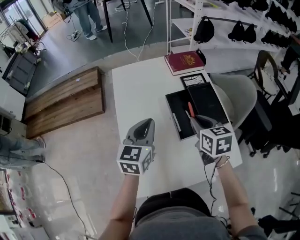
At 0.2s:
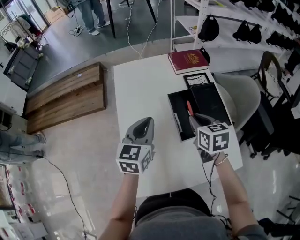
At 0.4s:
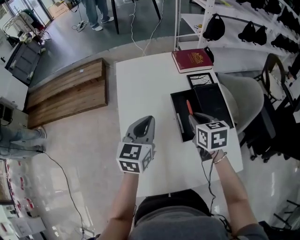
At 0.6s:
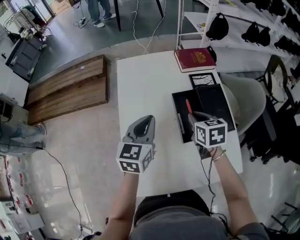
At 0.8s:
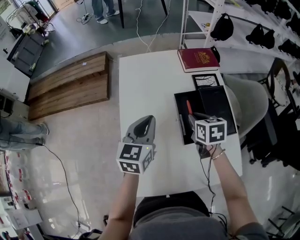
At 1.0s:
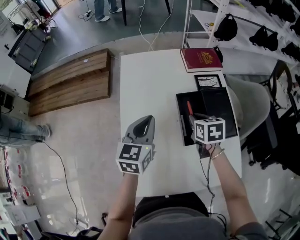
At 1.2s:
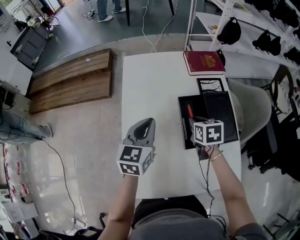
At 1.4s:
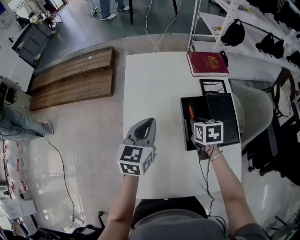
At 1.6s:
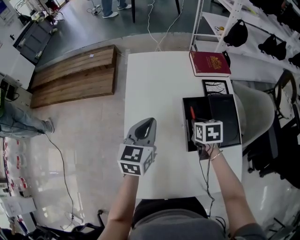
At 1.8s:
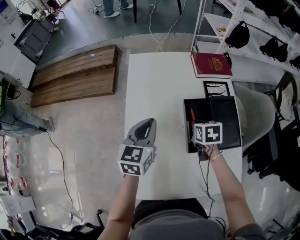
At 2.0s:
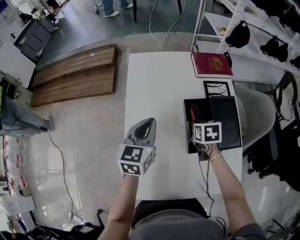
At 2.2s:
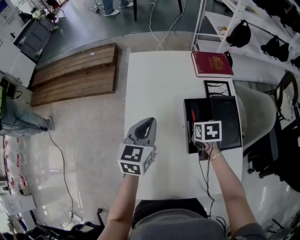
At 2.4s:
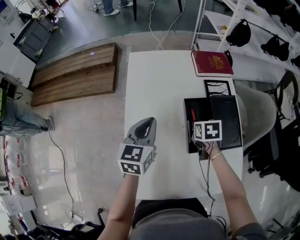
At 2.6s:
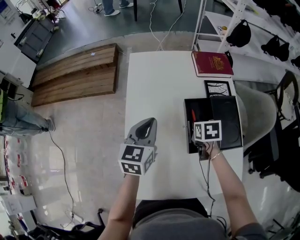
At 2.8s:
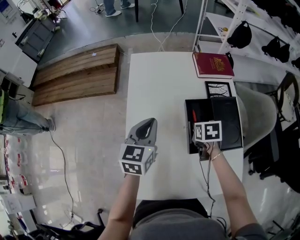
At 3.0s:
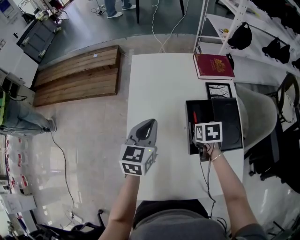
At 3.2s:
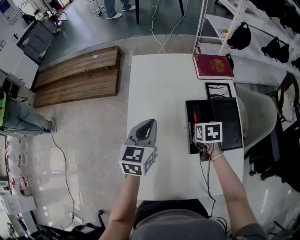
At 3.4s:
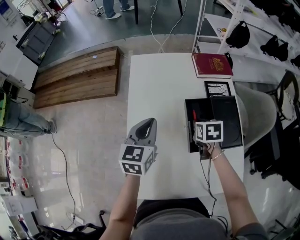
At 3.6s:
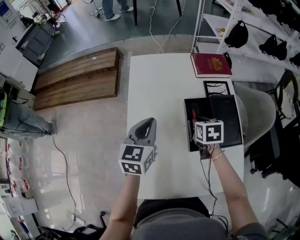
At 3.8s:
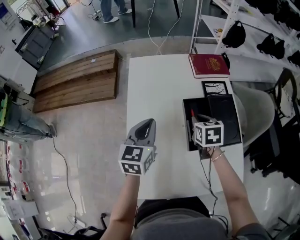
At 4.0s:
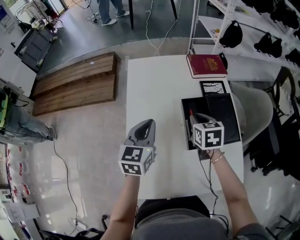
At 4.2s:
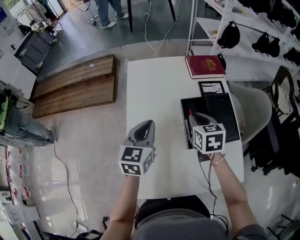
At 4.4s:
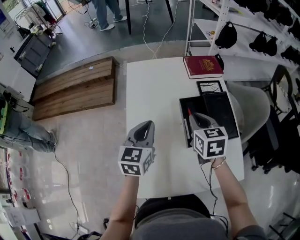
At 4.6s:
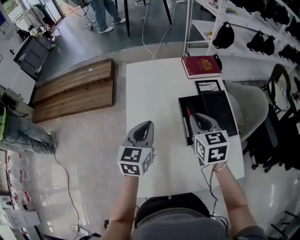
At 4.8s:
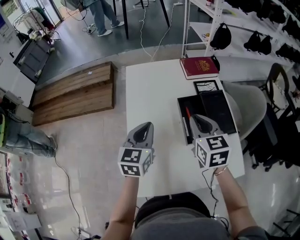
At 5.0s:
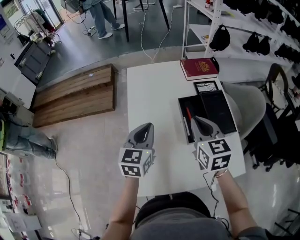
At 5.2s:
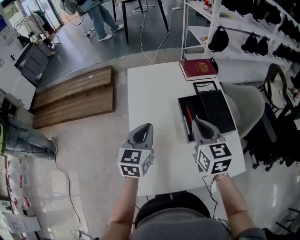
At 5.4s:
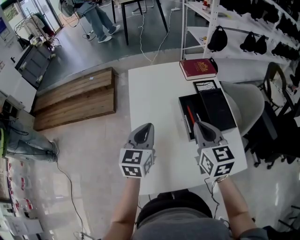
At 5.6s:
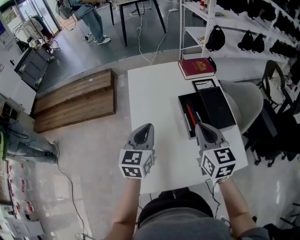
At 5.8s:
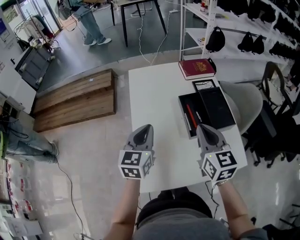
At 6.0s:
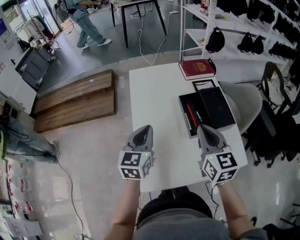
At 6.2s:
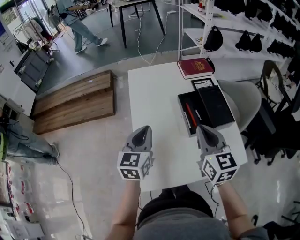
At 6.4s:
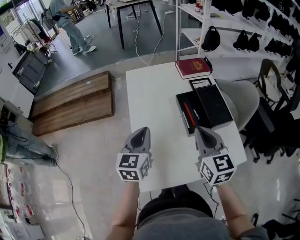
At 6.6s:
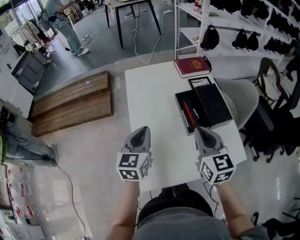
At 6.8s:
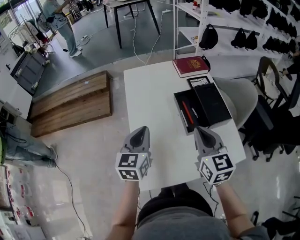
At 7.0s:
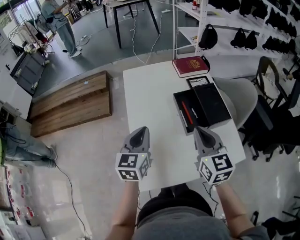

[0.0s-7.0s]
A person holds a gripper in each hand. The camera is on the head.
0.0s to 1.4s: The right gripper heads downward and forward, covering about 15 cm, while the left gripper ends up approximately 5 cm from where it was.
1.4s to 2.8s: The grippers make only small movements.
2.8s to 4.2s: The right gripper moves upward, about 10 cm, and swivels approximately 20 degrees.
4.2s to 5.6s: The right gripper shifts roughly 15 cm backward and upward, and rotates approximately 20 degrees. Meanwhile the left gripper moves backward, some 5 cm.
5.6s to 7.0s: The grippers move only a little.

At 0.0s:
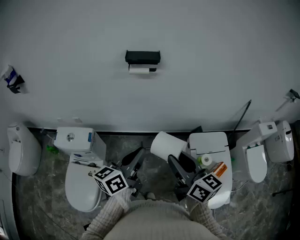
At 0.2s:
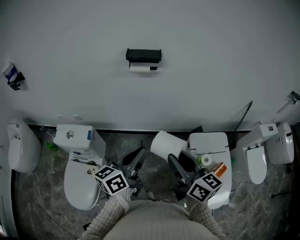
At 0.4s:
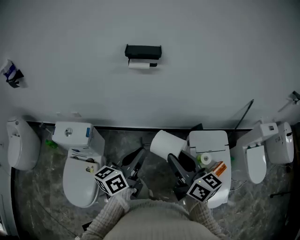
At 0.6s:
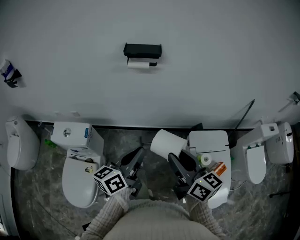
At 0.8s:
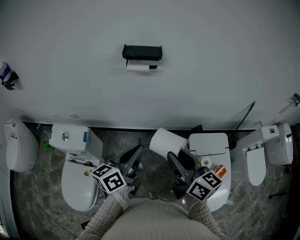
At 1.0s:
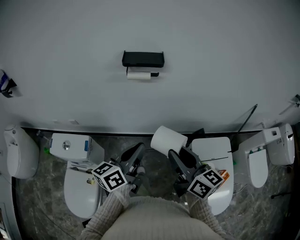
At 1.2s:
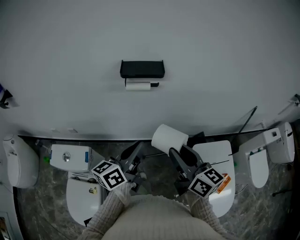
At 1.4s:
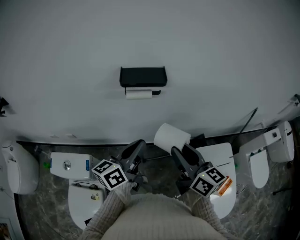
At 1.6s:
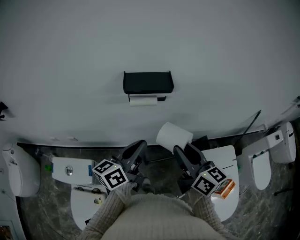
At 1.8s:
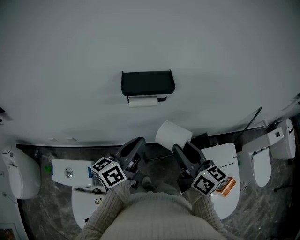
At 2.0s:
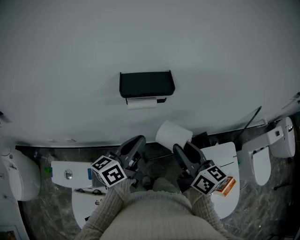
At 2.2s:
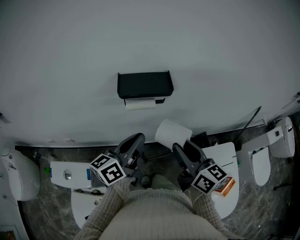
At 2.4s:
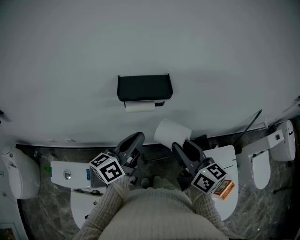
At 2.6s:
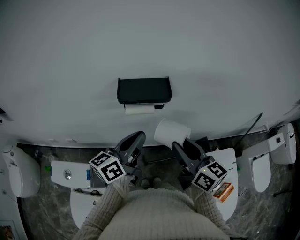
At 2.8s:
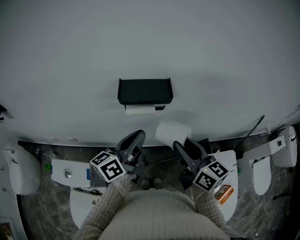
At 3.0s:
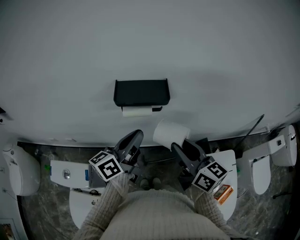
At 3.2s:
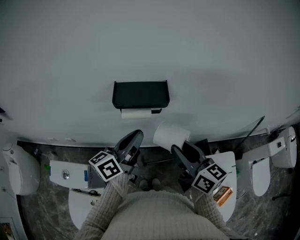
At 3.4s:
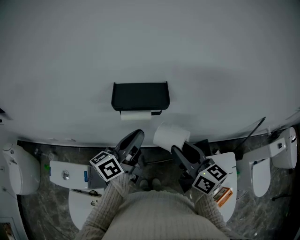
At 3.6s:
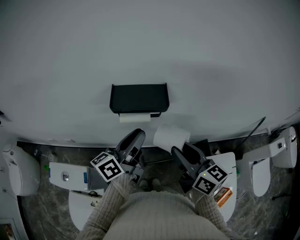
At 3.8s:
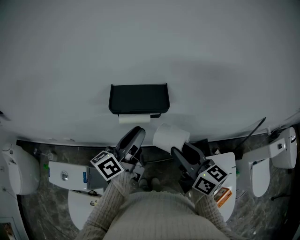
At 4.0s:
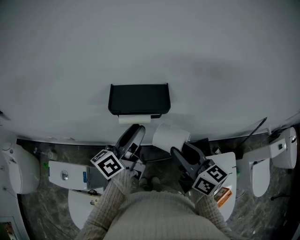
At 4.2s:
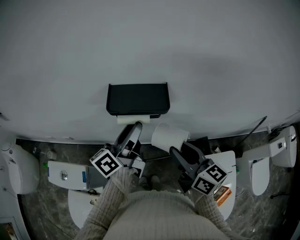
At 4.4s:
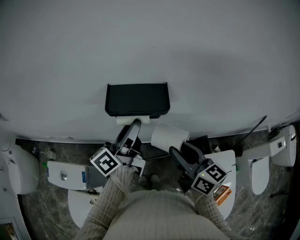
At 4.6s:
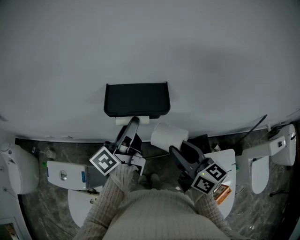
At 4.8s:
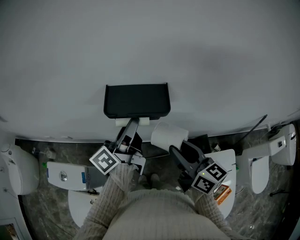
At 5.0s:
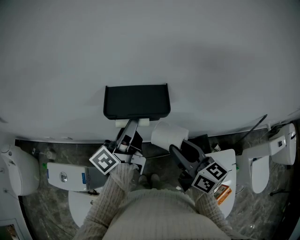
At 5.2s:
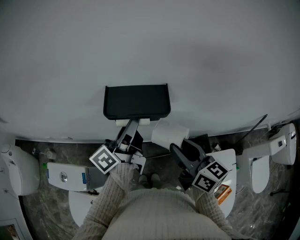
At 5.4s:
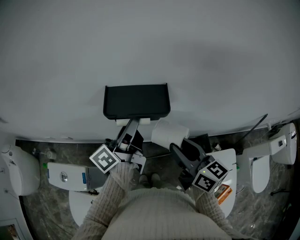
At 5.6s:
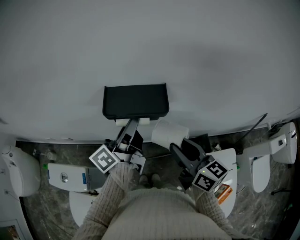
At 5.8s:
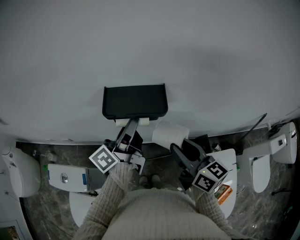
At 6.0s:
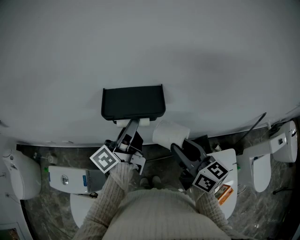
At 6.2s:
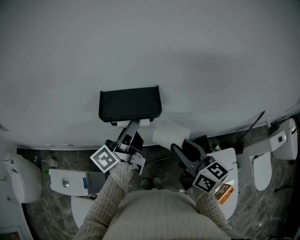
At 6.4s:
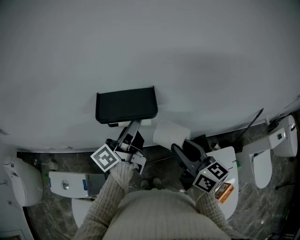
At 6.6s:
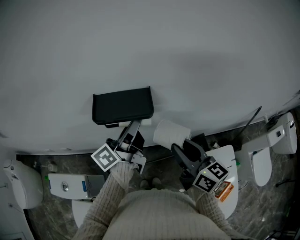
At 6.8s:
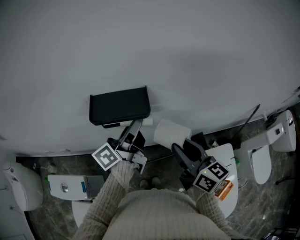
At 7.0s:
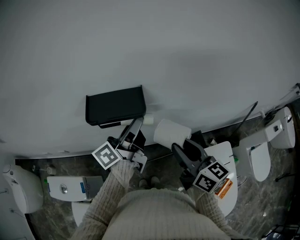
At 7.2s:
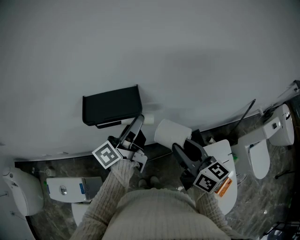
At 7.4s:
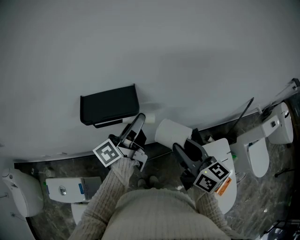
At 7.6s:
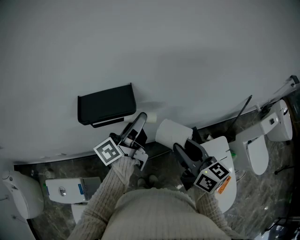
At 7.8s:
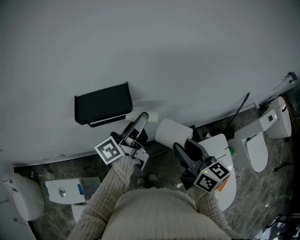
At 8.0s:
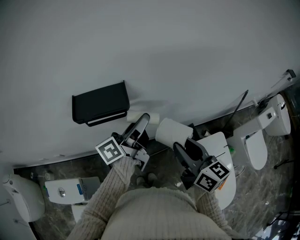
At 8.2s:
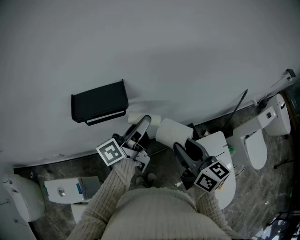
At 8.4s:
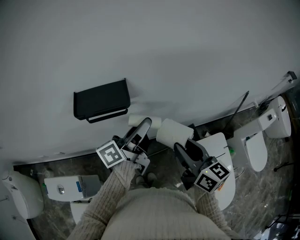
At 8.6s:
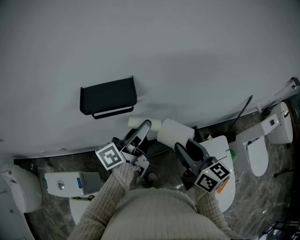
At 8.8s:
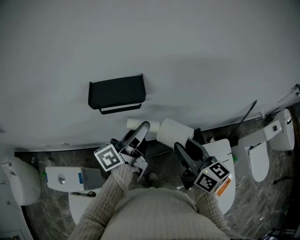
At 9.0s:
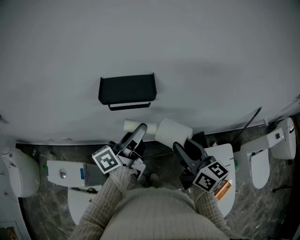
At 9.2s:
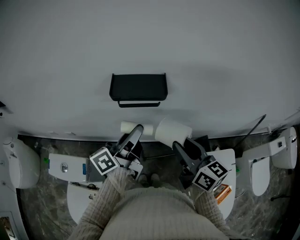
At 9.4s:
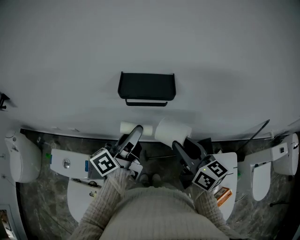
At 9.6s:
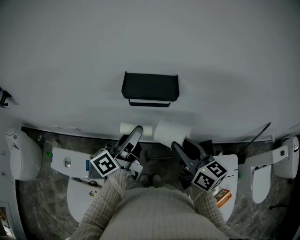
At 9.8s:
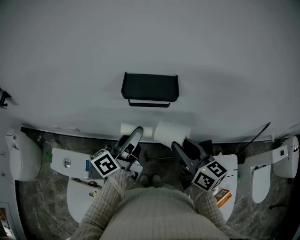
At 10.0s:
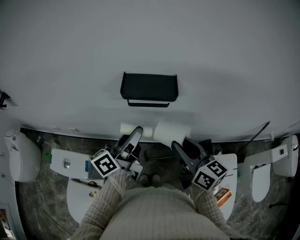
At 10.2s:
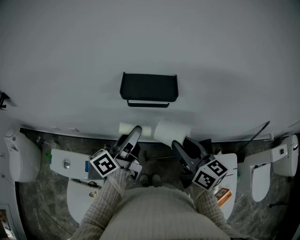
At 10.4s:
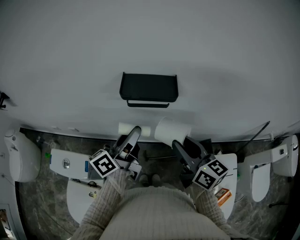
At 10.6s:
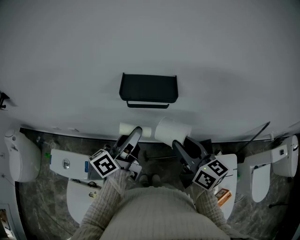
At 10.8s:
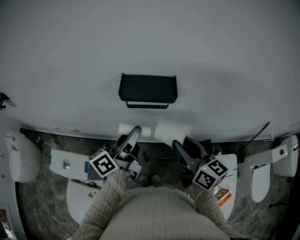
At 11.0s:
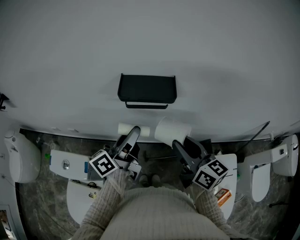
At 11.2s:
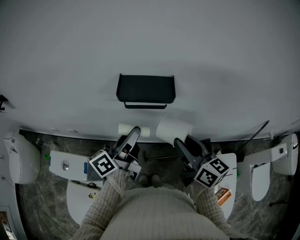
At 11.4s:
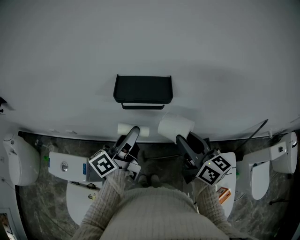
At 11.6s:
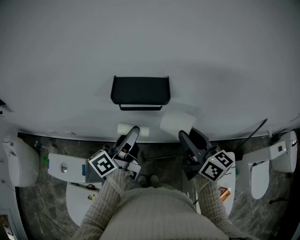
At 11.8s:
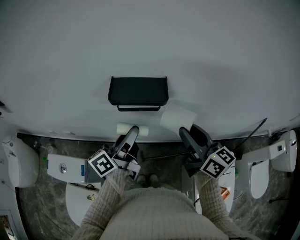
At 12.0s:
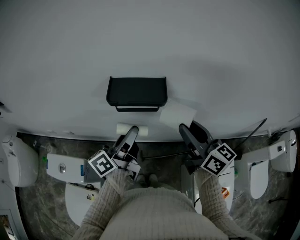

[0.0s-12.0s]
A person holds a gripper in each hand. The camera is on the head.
0.0s to 1.6s: The grippers both shift forward by roughly 25 cm.
1.6s to 3.0s: The two grippers go about 5 cm forward.
3.0s to 4.4s: The left gripper shifts some 5 cm forward, and opens.
4.4s to 6.0s: The grippers stay close to where they were, moving slightly.
6.0s to 7.6s: The grippers both shift to the right by roughly 10 cm.
7.6s to 9.0s: The left gripper goes some 10 cm backward.
9.0s to 10.4s: The left gripper goes approximately 10 cm to the left. The right gripper changes place by some 5 cm.
10.4s to 12.0s: The right gripper goes approximately 10 cm forward and to the right.

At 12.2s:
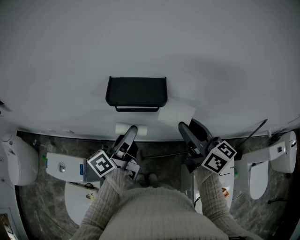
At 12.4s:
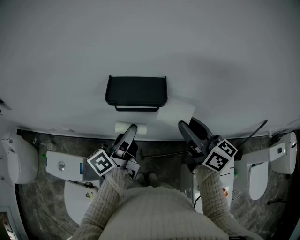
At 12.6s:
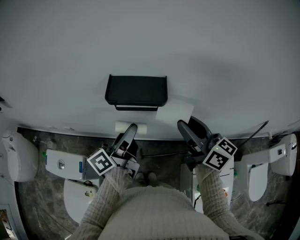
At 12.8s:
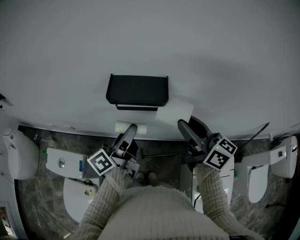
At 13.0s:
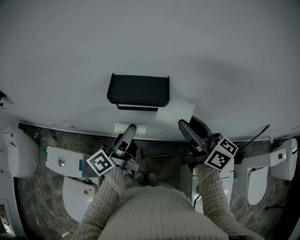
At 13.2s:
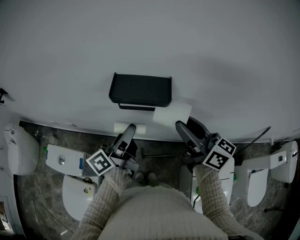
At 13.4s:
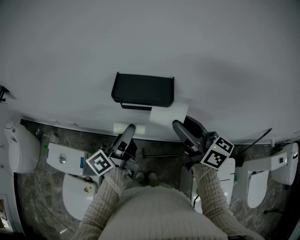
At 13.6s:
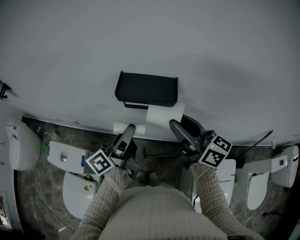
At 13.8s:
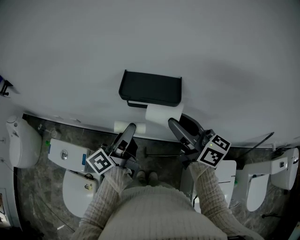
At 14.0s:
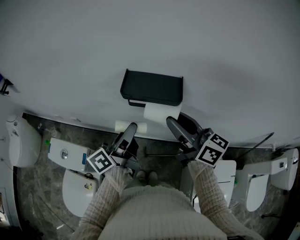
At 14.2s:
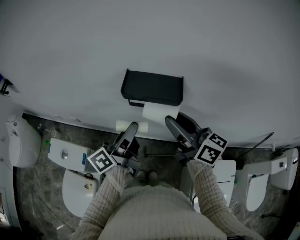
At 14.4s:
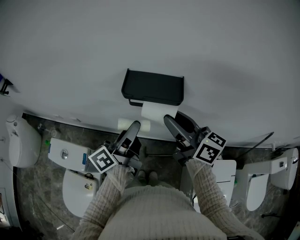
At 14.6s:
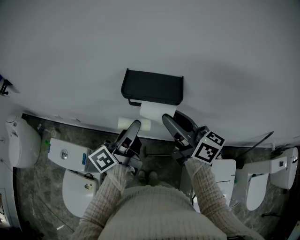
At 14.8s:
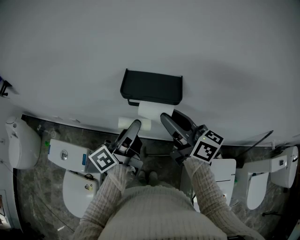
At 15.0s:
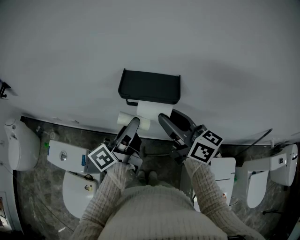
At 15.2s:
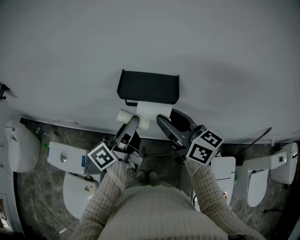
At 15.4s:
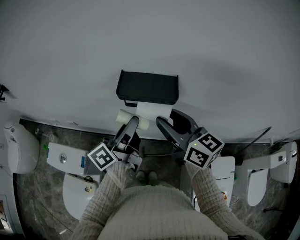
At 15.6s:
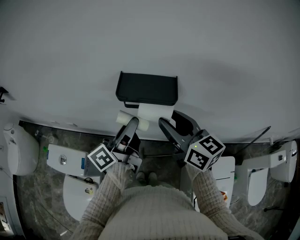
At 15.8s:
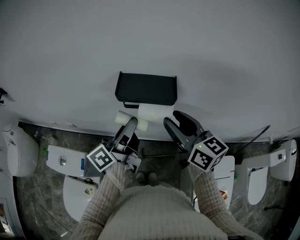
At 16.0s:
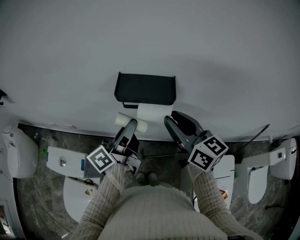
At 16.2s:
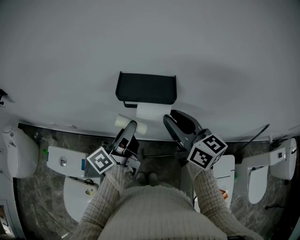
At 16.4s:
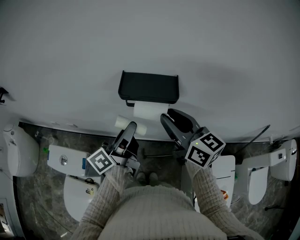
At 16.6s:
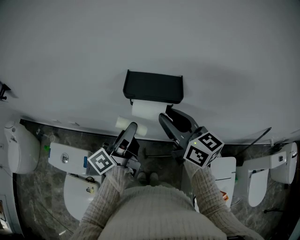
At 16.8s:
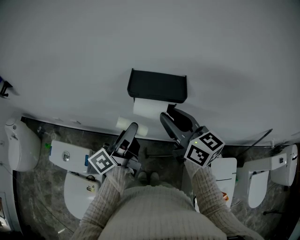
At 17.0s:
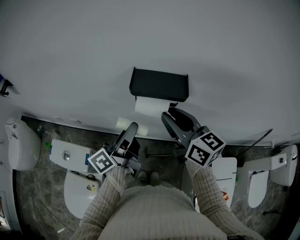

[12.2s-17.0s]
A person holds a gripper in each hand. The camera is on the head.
12.2s to 13.8s: The right gripper is displaced to the left by approximately 5 cm.
13.8s to 17.0s: There are only small adjustments of the grippers.
